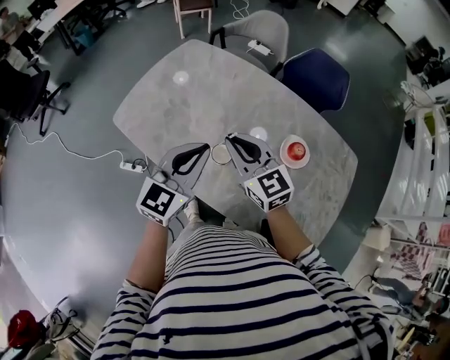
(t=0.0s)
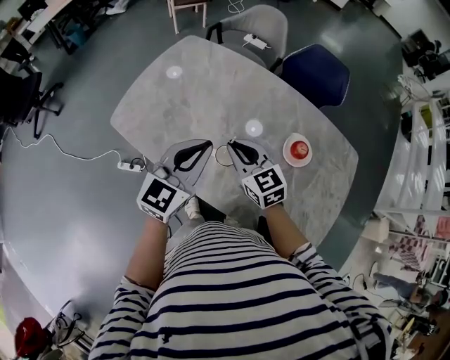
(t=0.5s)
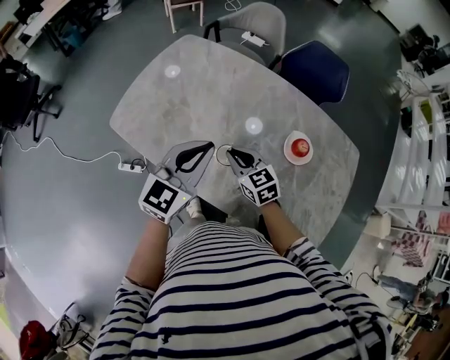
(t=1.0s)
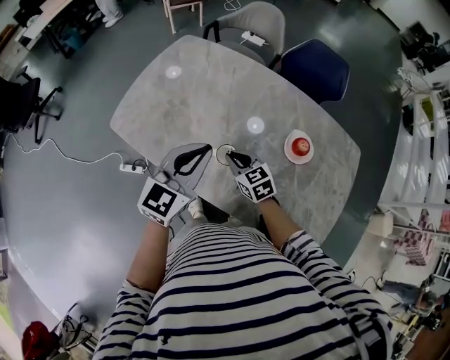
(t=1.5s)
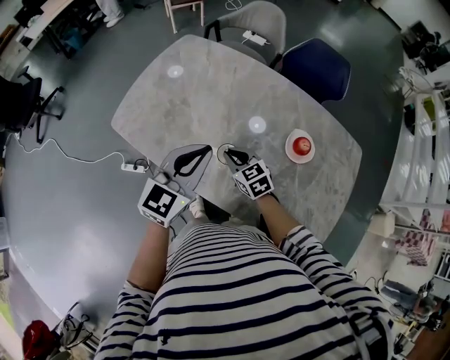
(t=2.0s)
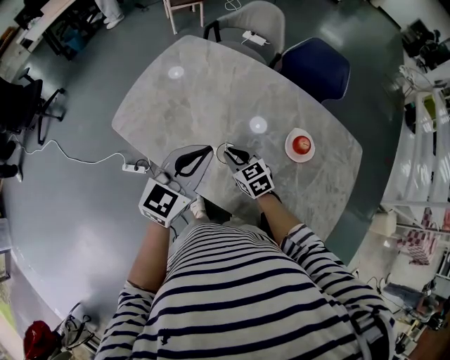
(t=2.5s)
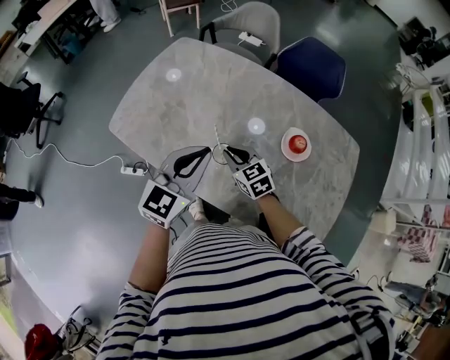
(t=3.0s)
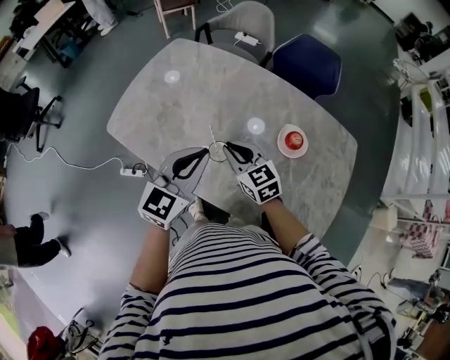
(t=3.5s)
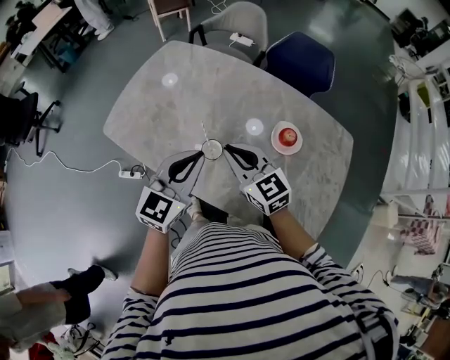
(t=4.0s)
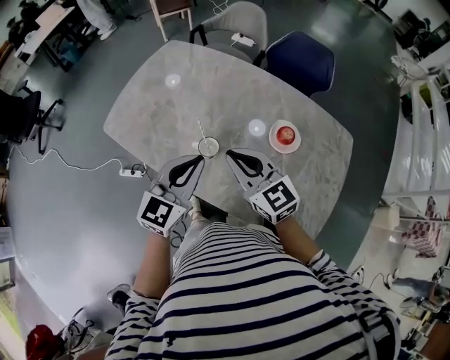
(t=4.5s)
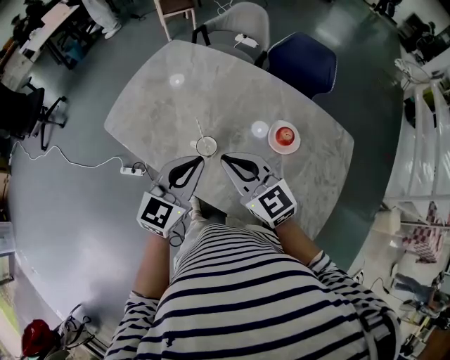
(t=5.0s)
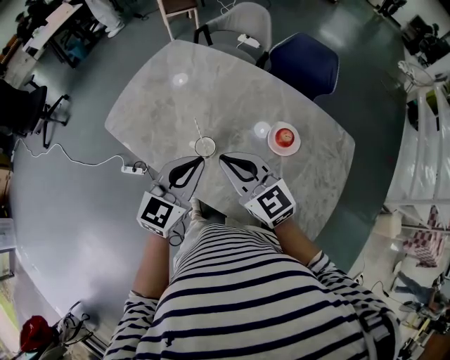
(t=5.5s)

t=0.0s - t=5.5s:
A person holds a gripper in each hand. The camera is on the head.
t=0.0s - t=2.0s: The right gripper moves downward, approximately 20 cm, and turns by approximately 30 degrees.
t=2.0s - t=3.5s: The right gripper shifts approximately 10 cm upward.
t=3.5s - t=5.5s: The left gripper changes place by roughly 5 cm, while the right gripper moves upward and backward, about 15 cm.

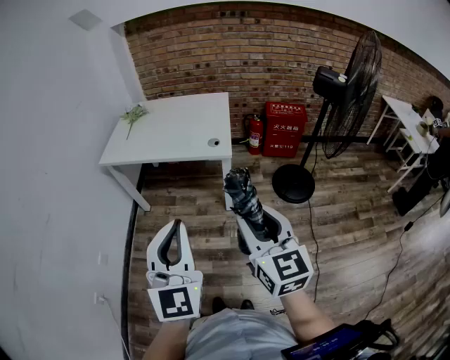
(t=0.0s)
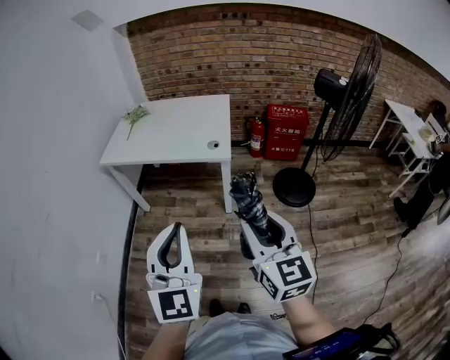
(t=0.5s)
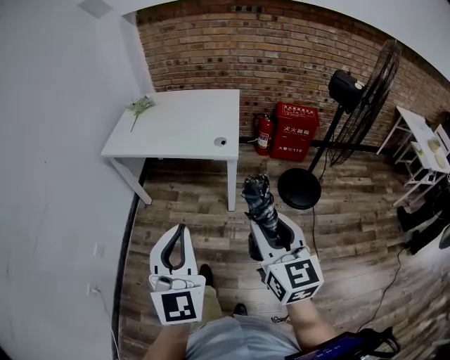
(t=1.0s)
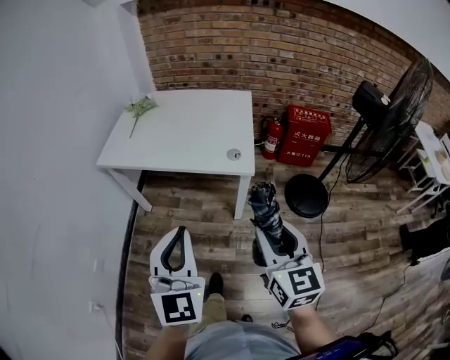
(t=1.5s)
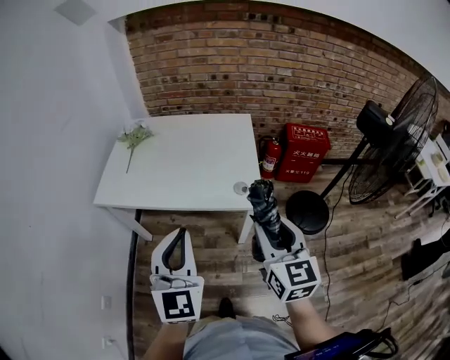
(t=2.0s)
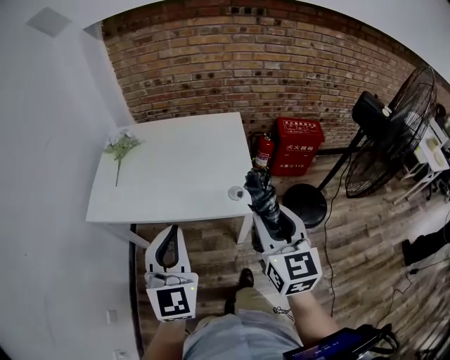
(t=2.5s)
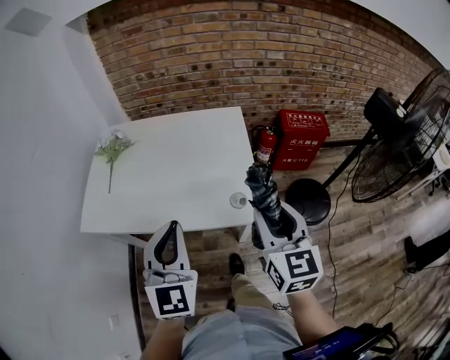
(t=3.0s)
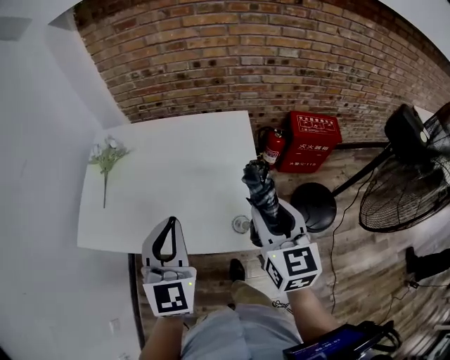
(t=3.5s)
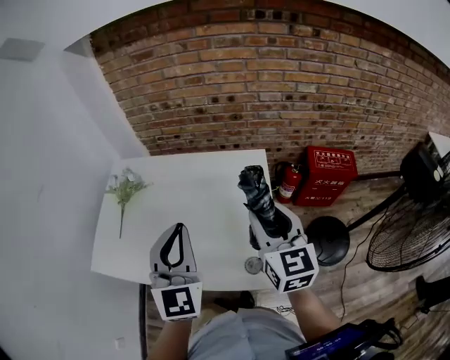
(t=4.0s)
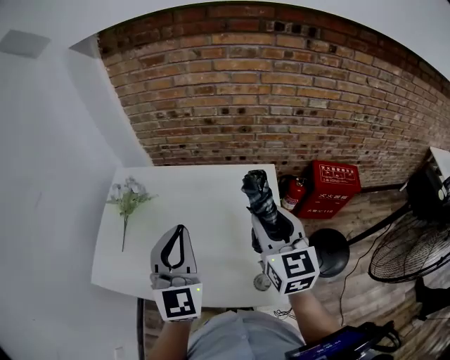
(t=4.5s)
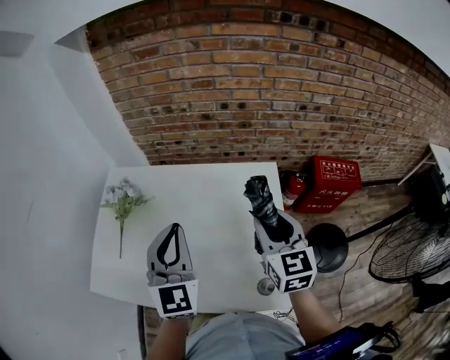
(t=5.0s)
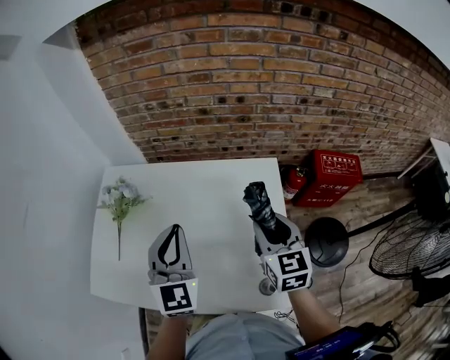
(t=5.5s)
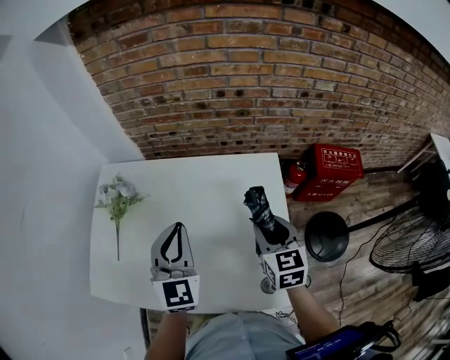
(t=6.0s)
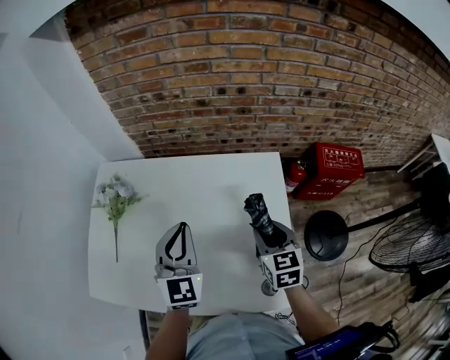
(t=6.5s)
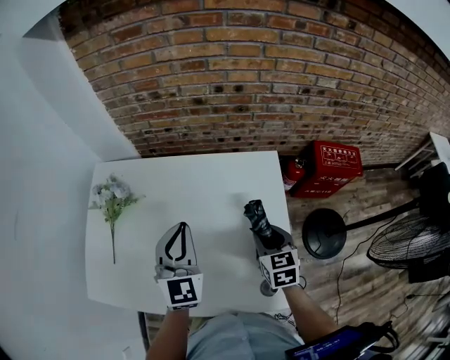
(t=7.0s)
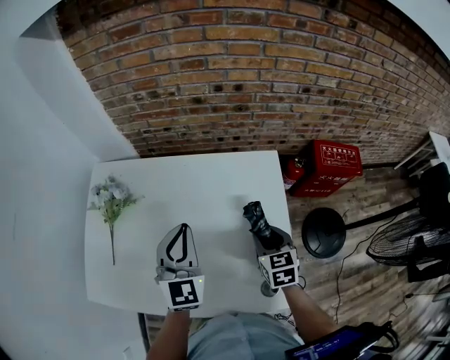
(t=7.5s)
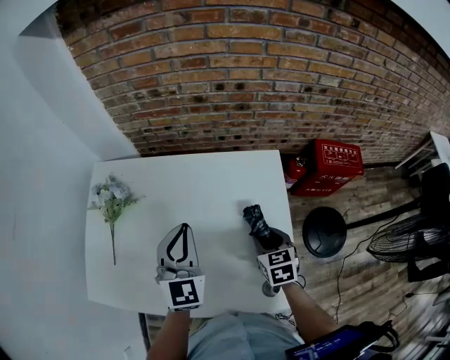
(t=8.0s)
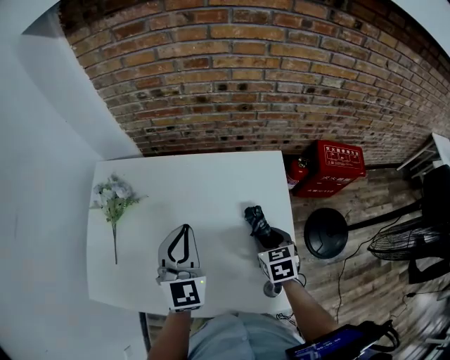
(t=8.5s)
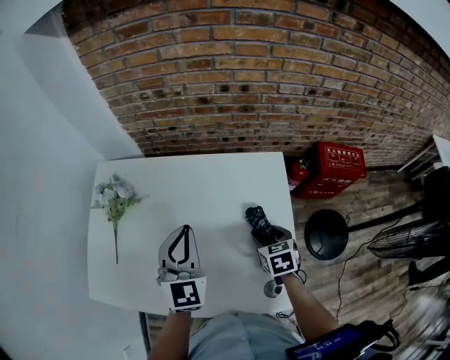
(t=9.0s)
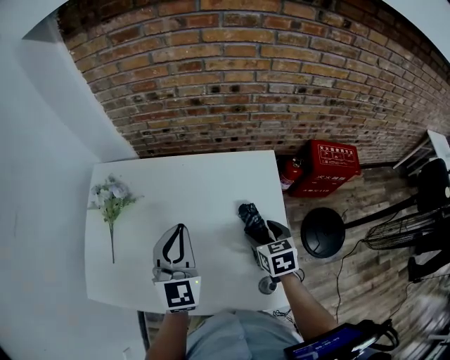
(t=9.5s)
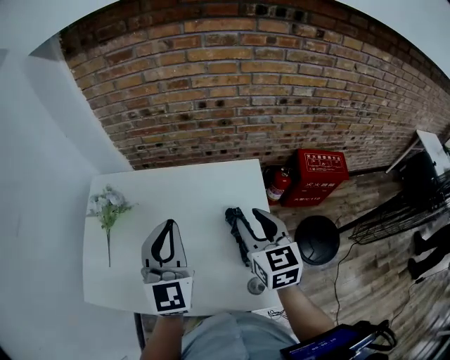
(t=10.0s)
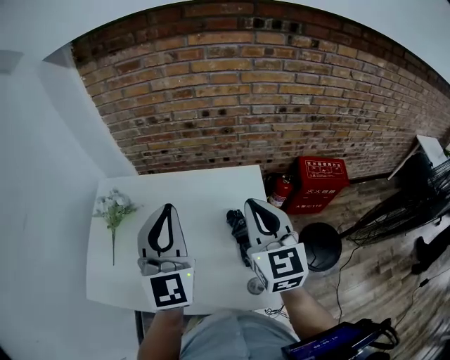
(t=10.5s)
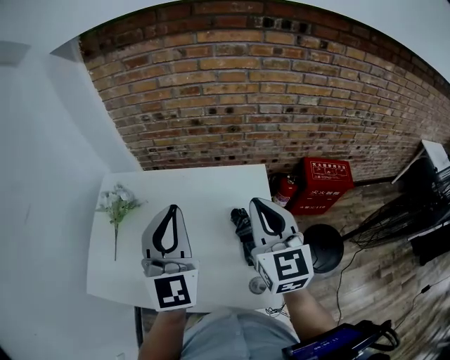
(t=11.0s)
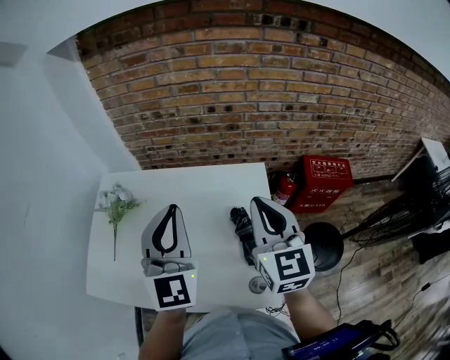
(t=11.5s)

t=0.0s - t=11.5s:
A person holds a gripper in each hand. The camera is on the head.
t=0.0s - t=2.0s: The two grippers go roughly 30 cm forward.
t=2.0s - t=4.0s: The grippers both shift forward by some 35 cm.
t=4.0s - t=6.0s: The right gripper goes approximately 15 cm downward and forward. Meanwhile the left gripper shifts approximately 15 cm forward and downward.
t=6.0s - t=7.5s: The right gripper travels downward by approximately 10 cm.
t=7.5s - t=9.5s: The right gripper opens up.
t=9.5s - t=11.5s: The left gripper moves upward, some 15 cm; the right gripper is displaced upward by some 30 cm, tilts its fingers some 40 degrees upward, and closes its fingers.

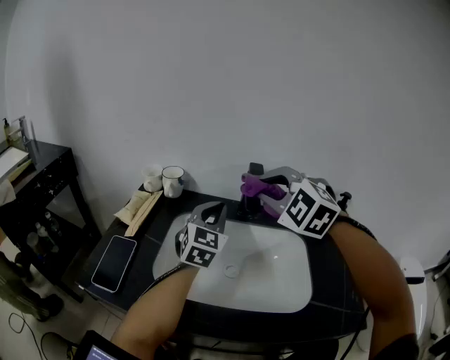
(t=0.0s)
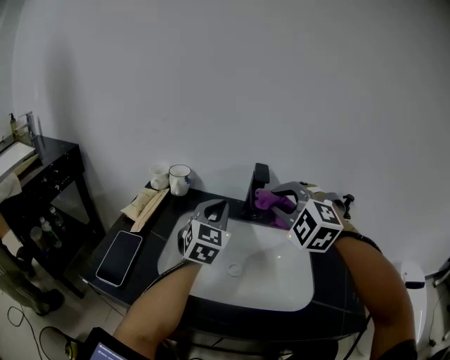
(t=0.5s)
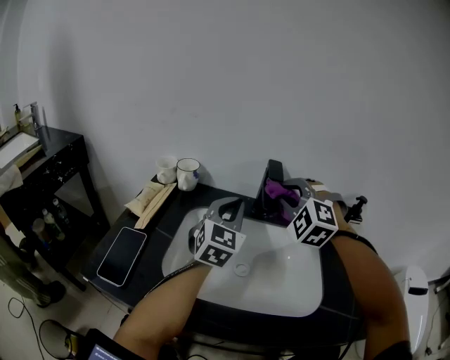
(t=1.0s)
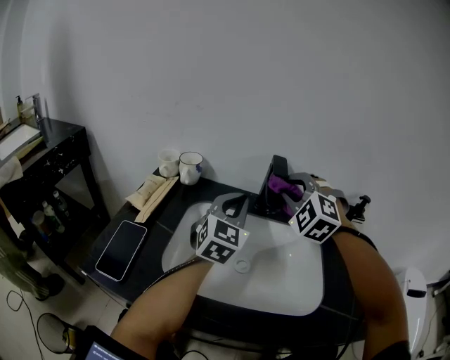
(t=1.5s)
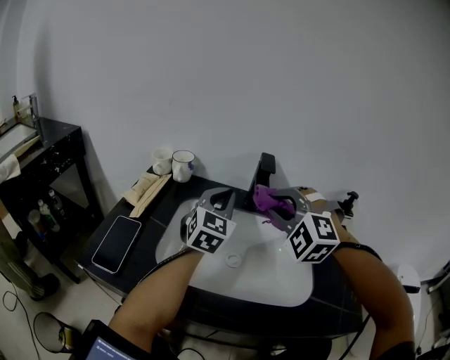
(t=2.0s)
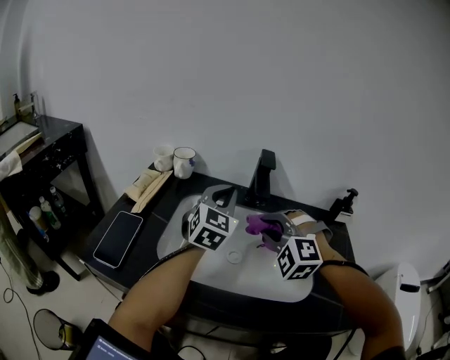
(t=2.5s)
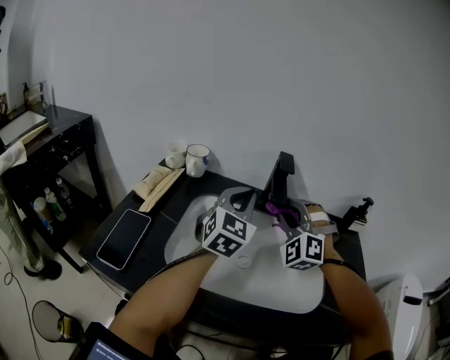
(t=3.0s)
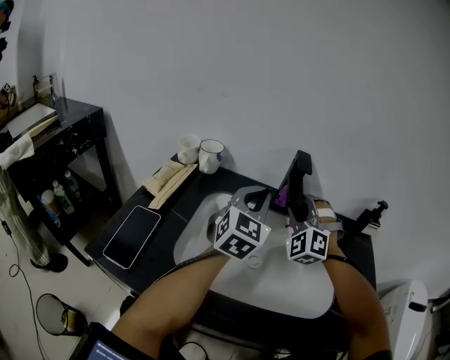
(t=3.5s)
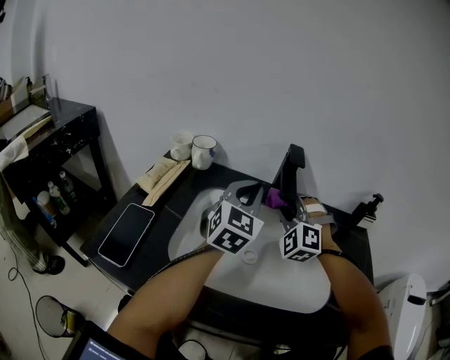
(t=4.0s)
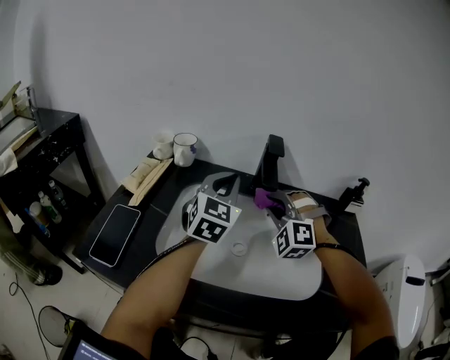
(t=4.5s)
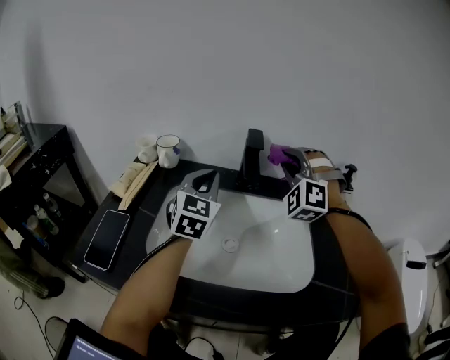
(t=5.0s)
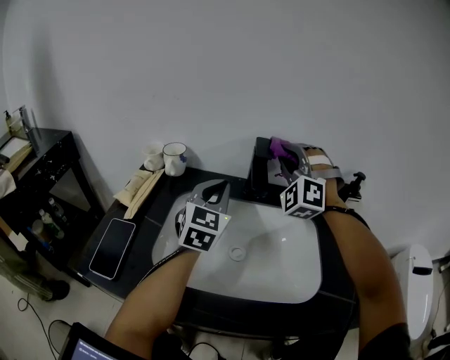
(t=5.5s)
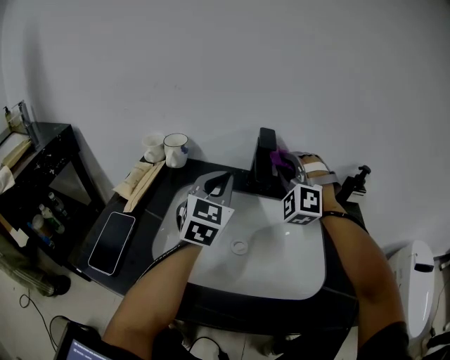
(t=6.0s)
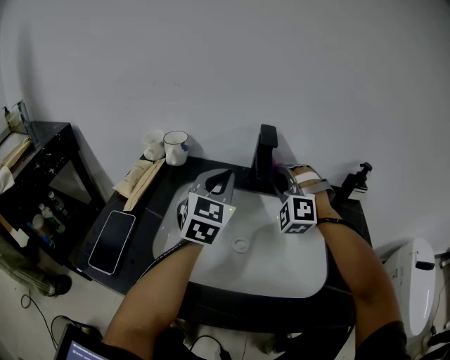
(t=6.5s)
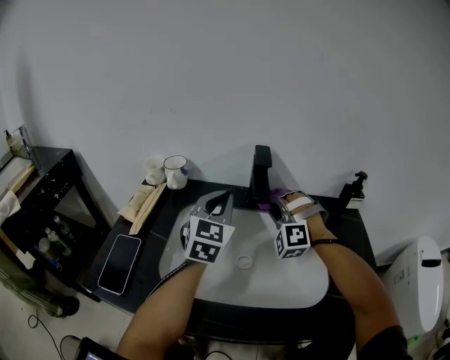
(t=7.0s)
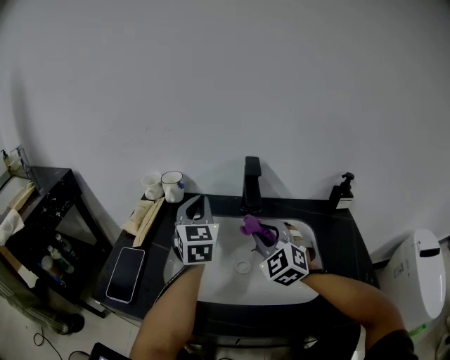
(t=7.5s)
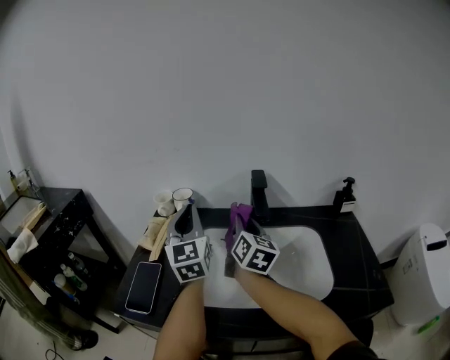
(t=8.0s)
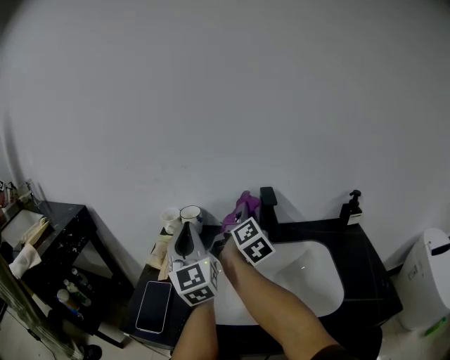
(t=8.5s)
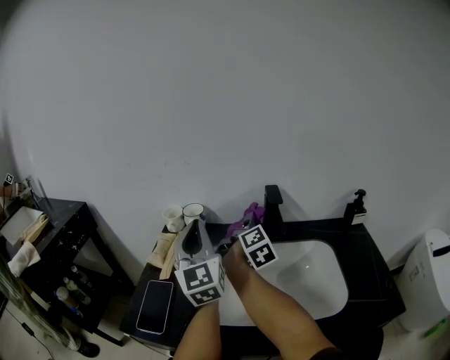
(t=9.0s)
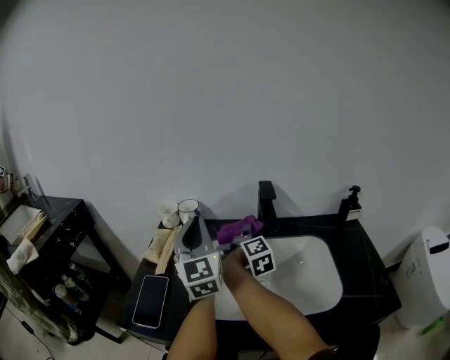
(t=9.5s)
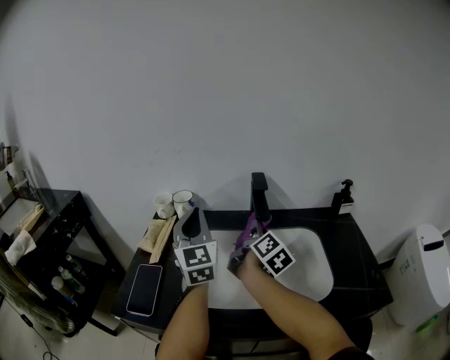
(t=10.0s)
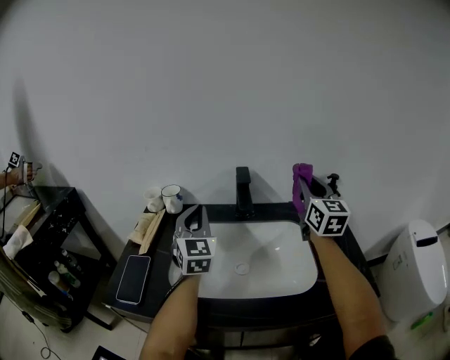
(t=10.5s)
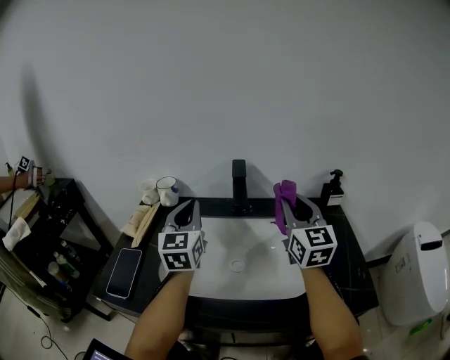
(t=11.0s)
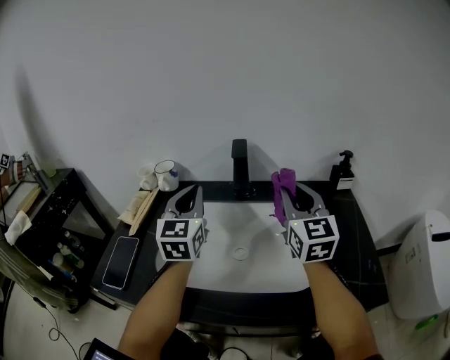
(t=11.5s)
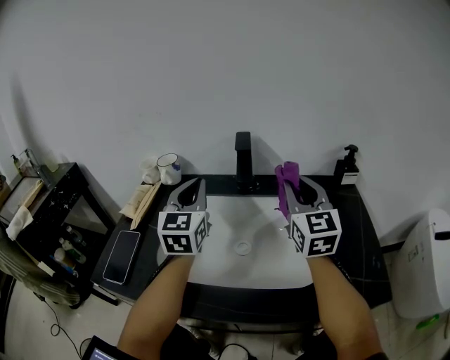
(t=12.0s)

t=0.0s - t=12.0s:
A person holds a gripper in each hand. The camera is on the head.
t=0.0s - t=2.0s: The right gripper goes approximately 5 cm downward, and goes forward and returns, about 5 cm each way.
t=2.0s - t=4.0s: The right gripper heads downward and forward, covering about 15 cm.
t=4.0s - t=6.0s: The right gripper heads upward, covering some 10 cm.
t=6.0s - t=8.0s: The right gripper travels to the left and backward by roughly 10 cm, and rolls clockwise, seen from behind, by about 120 degrees. Meanwhile the left gripper is displaced to the left and upward by roughly 15 cm, and changes its angle by approximately 30 degrees.
t=8.0s - t=10.0s: The right gripper travels to the right by about 5 cm, travels downward and back again, some 5 cm each way, and swivels approximately 30 degrees.
t=10.0s - t=12.0s: The right gripper moves to the right and upward, roughly 15 cm, and twists about 60 degrees counterclockwise, seen from behind, while the left gripper goes approximately 5 cm to the right.
